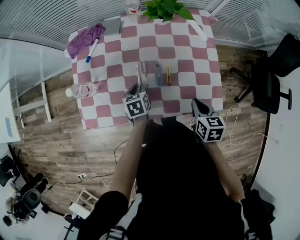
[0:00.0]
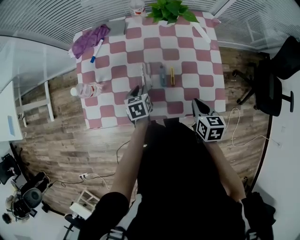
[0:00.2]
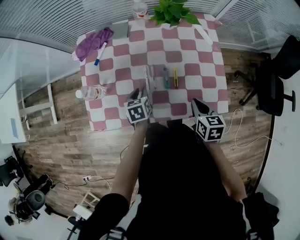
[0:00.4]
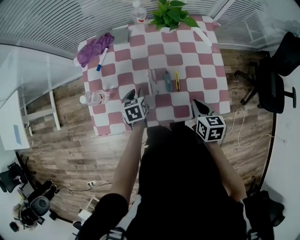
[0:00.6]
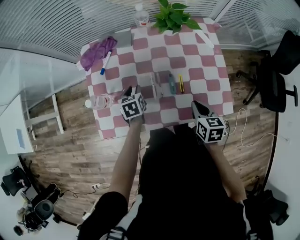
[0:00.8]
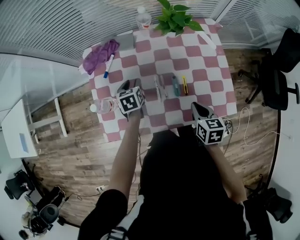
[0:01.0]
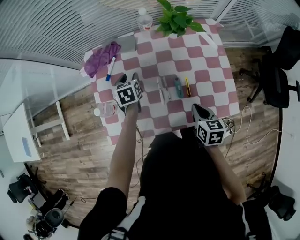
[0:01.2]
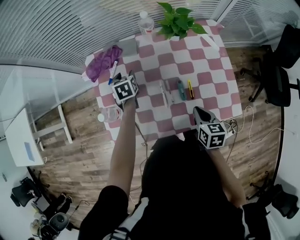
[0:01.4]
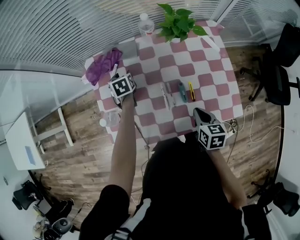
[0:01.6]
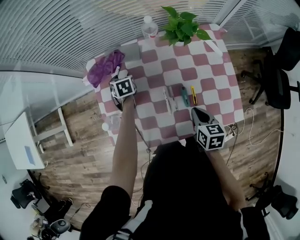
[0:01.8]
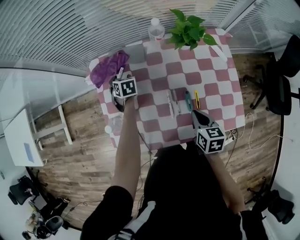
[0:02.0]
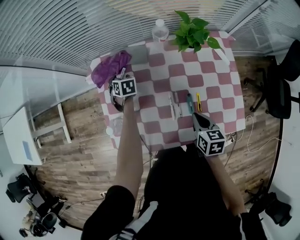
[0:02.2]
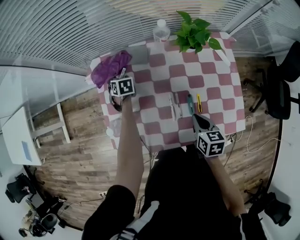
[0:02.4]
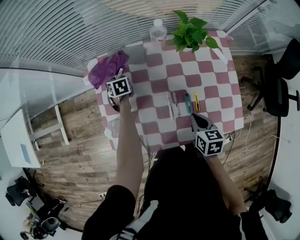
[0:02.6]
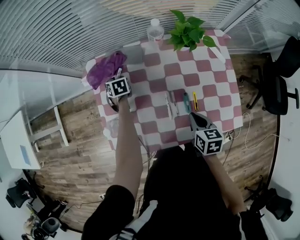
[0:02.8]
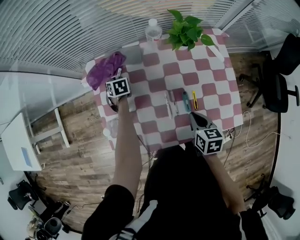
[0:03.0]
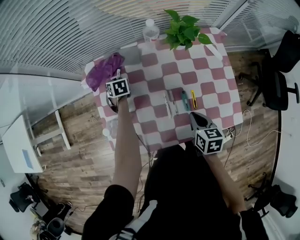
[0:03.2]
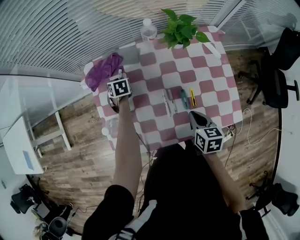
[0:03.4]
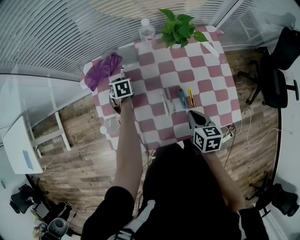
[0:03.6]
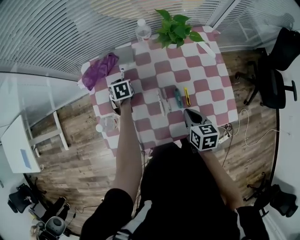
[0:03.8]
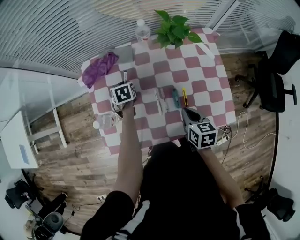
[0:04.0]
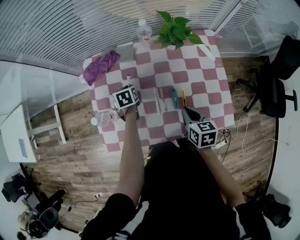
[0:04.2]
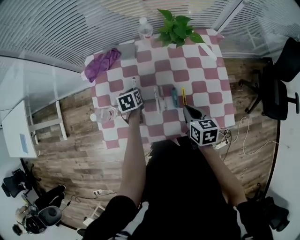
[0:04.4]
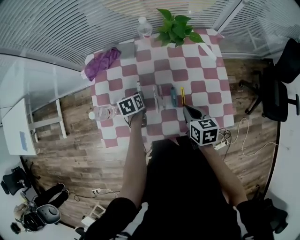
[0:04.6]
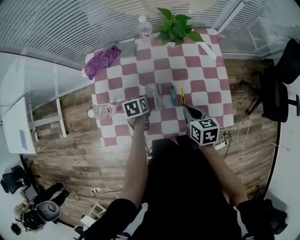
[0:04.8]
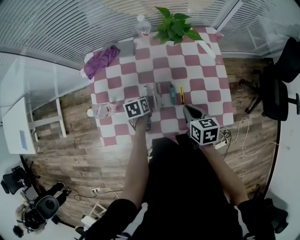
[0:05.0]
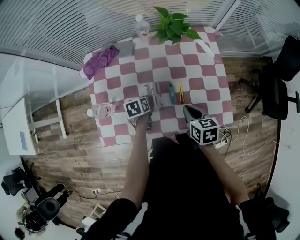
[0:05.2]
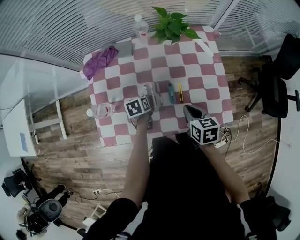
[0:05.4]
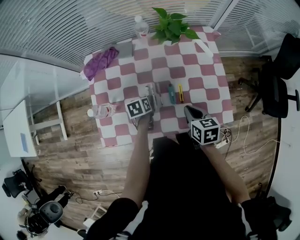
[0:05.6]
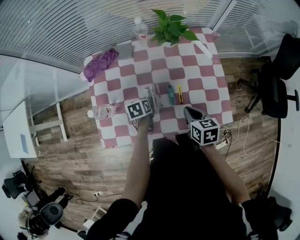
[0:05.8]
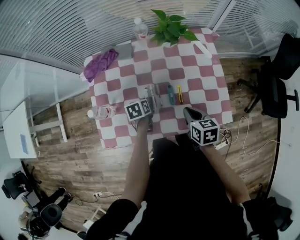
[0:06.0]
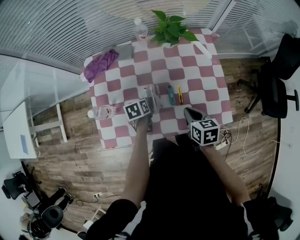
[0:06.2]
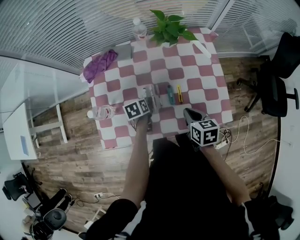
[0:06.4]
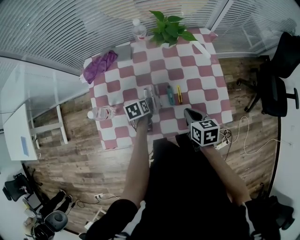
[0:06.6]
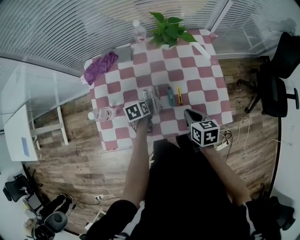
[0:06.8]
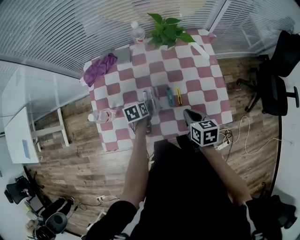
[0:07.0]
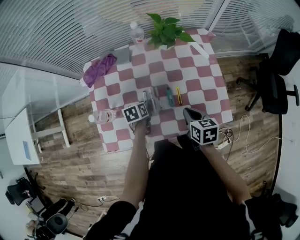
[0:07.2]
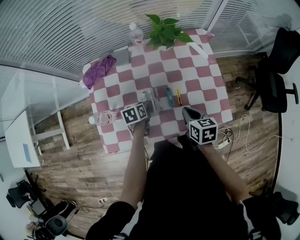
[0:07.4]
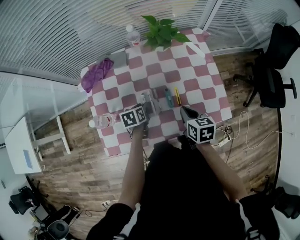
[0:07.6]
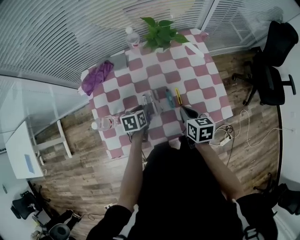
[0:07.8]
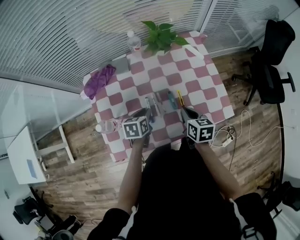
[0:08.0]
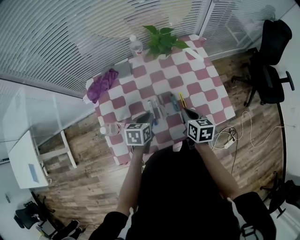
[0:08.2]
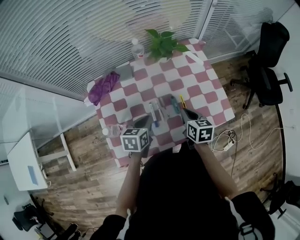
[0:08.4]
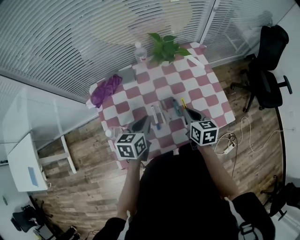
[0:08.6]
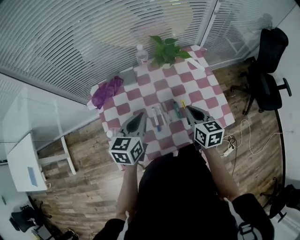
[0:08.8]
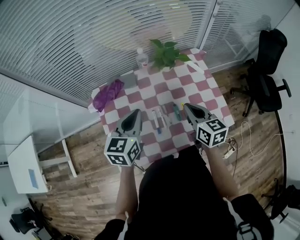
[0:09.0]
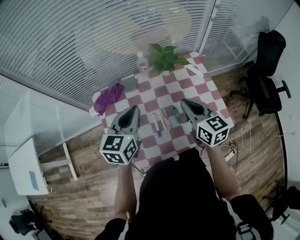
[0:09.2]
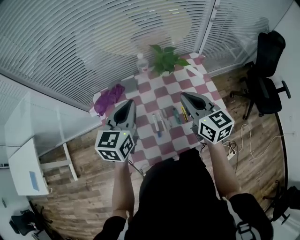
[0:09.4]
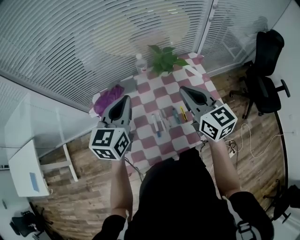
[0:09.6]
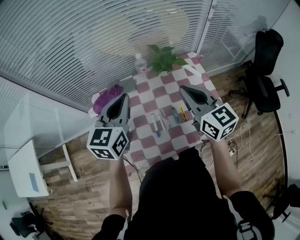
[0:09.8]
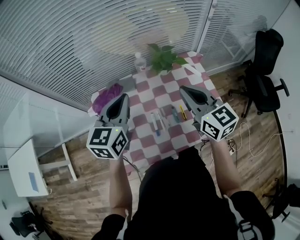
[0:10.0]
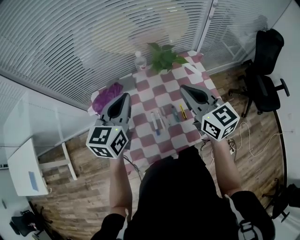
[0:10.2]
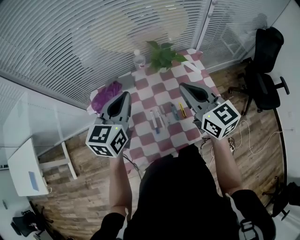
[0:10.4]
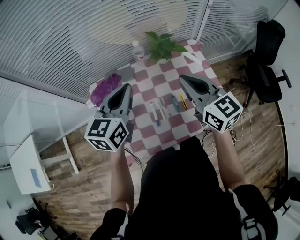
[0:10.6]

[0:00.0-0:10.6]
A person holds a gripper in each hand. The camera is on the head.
0:00.0 to 0:01.6: The right gripper heads to the left and forward, covering about 10 cm. Meanwhile the left gripper travels forward and to the left by roughly 25 cm, and opens up.
0:01.6 to 0:03.0: The left gripper heads downward, covering roughly 5 cm, and closes its fingers.
0:03.0 to 0:04.6: The left gripper travels backward and to the right by some 20 cm, and turns by some 30 degrees.
0:04.6 to 0:06.0: The left gripper ends up approximately 5 cm from where it was.
0:06.0 to 0:07.6: The grippers make only small movements.
0:07.6 to 0:09.0: The left gripper travels upward by some 30 cm, angles its fingers upward, by some 30 degrees, and closes. Meanwhile the right gripper heads upward, covering approximately 15 cm, and changes its angle by approximately 20 degrees.
0:09.0 to 0:10.6: The right gripper shifts approximately 15 cm upward, and turns by approximately 20 degrees. The left gripper heads upward, covering roughly 10 cm.

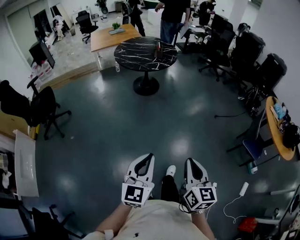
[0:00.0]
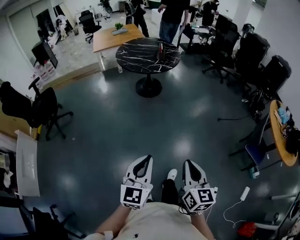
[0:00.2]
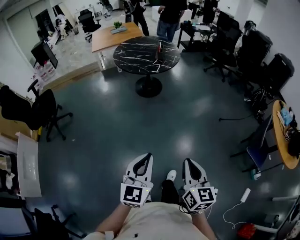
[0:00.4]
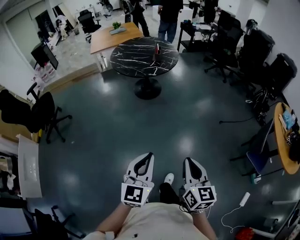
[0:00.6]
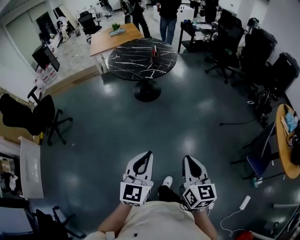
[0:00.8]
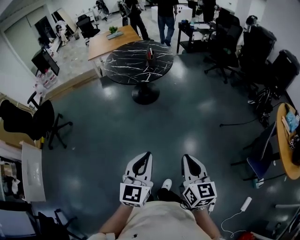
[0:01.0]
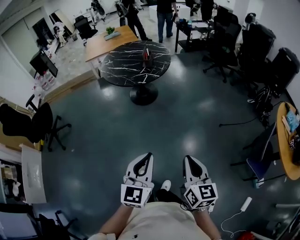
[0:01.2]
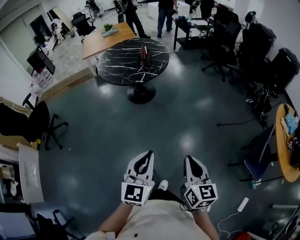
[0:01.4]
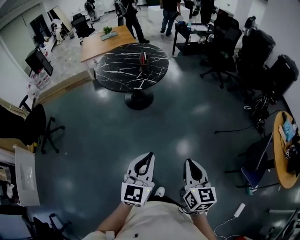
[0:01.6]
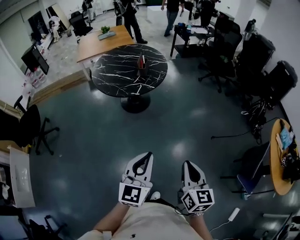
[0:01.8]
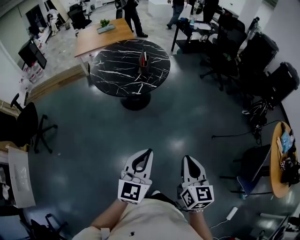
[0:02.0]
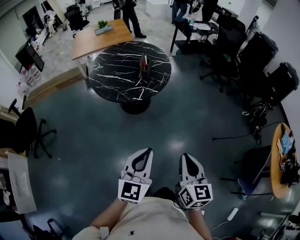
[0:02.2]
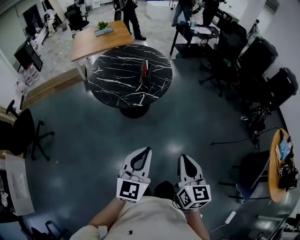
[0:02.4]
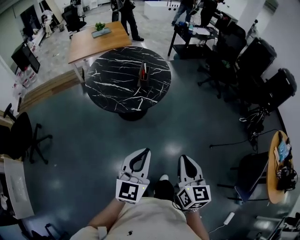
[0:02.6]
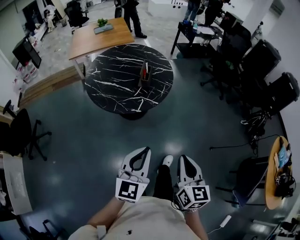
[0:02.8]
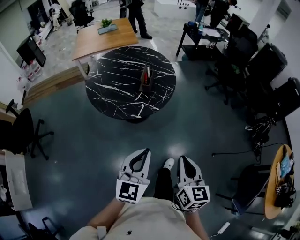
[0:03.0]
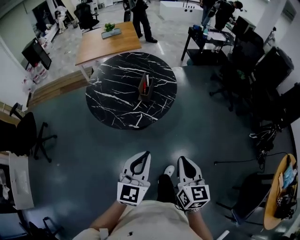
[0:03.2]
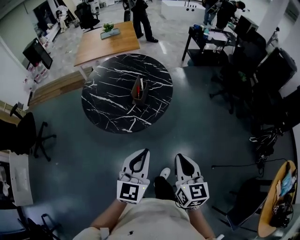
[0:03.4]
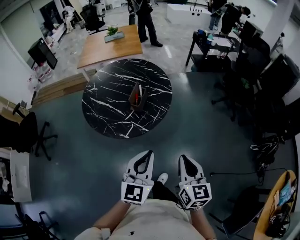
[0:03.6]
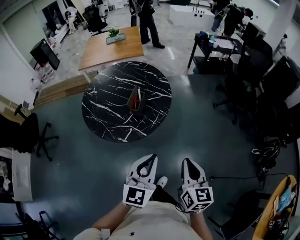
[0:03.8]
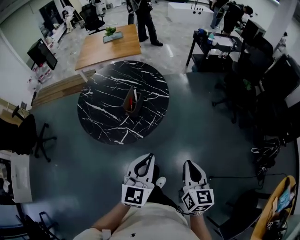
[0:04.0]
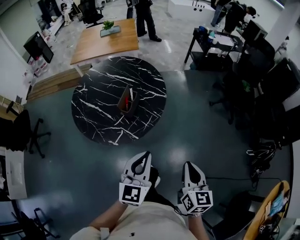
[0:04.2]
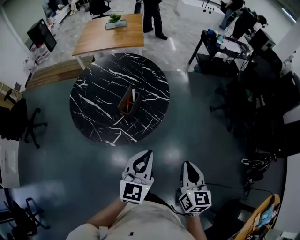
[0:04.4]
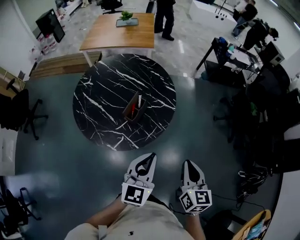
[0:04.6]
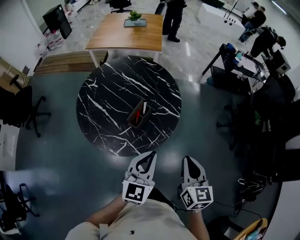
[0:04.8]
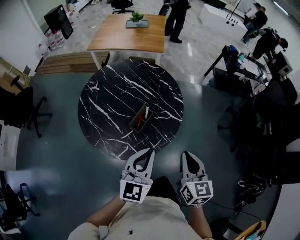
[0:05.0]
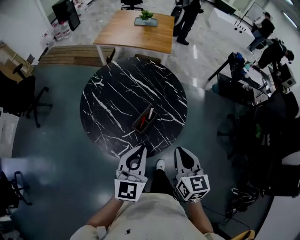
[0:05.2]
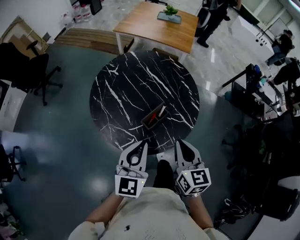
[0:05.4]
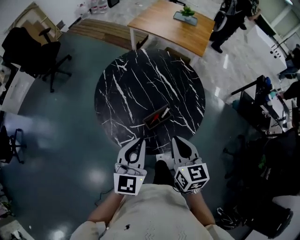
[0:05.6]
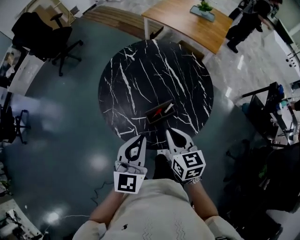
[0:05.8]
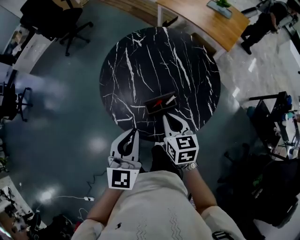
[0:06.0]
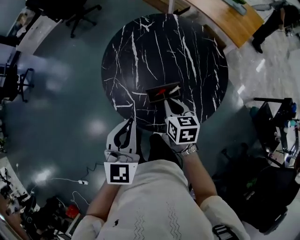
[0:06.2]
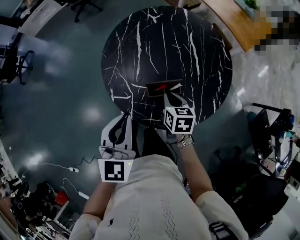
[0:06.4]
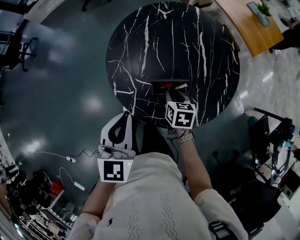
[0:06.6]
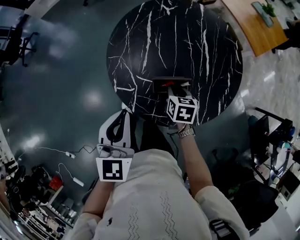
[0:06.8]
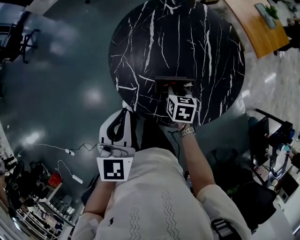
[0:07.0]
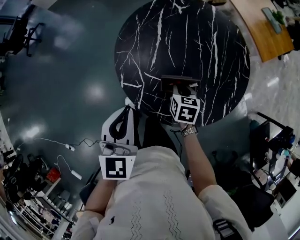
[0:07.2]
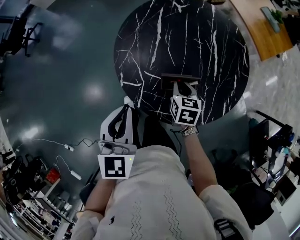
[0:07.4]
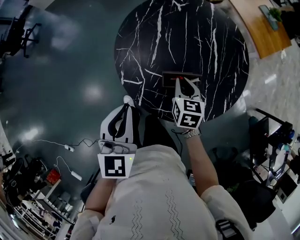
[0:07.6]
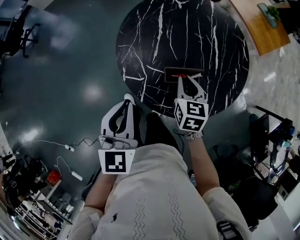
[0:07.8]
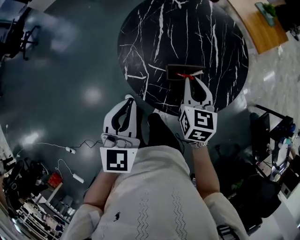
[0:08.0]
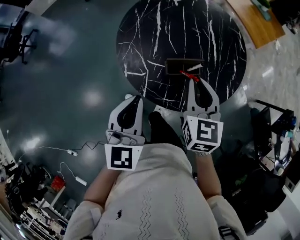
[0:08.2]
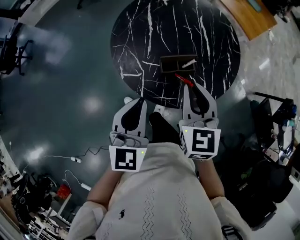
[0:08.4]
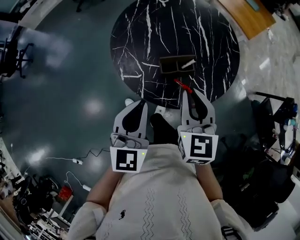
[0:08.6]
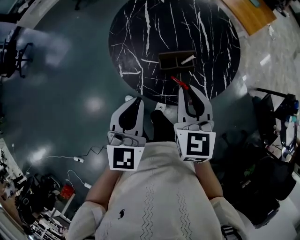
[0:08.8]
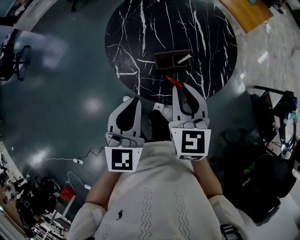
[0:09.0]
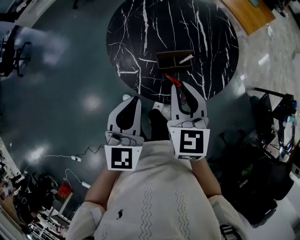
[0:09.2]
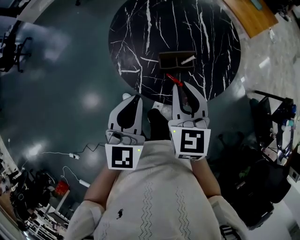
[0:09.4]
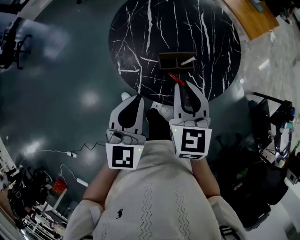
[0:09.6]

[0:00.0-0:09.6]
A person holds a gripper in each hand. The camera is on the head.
0:00.0 to 0:01.6: Both grippers move forward and to the right, roughly 40 cm.
0:01.6 to 0:03.2: Both grippers are carried forward, approximately 40 cm.
0:03.2 to 0:04.8: Both grippers travel together forward, some 35 cm.
0:04.8 to 0:06.4: The right gripper changes place by roughly 35 cm, and turns by about 60 degrees. The left gripper moves approximately 10 cm, and swivels about 70 degrees.
0:06.4 to 0:08.0: The left gripper goes roughly 5 cm to the left. Meanwhile the right gripper heads upward, covering some 10 cm, and turns by roughly 20 degrees.
0:08.0 to 0:09.6: The right gripper shifts about 10 cm backward and upward.

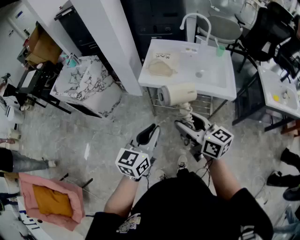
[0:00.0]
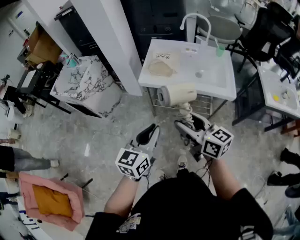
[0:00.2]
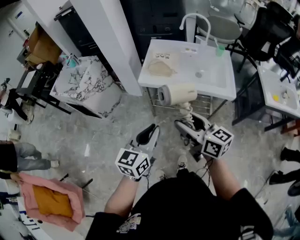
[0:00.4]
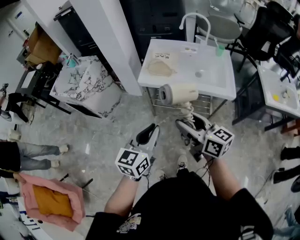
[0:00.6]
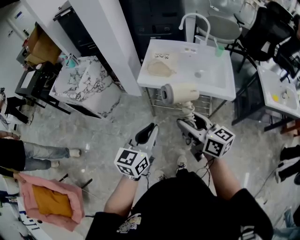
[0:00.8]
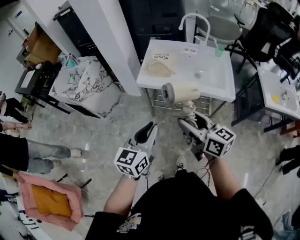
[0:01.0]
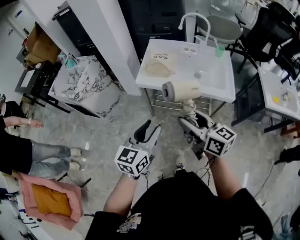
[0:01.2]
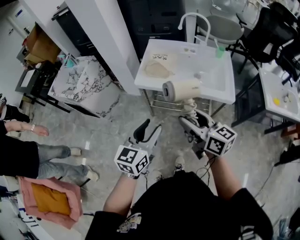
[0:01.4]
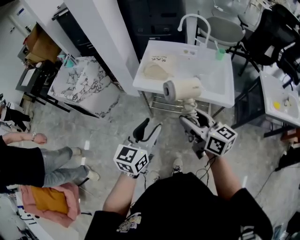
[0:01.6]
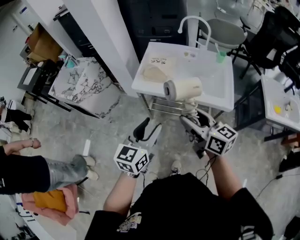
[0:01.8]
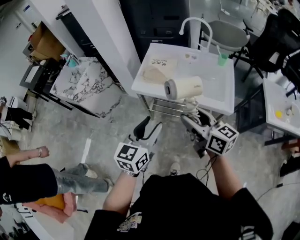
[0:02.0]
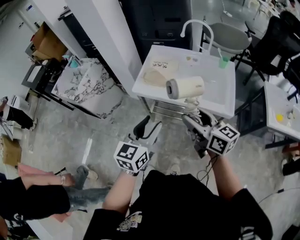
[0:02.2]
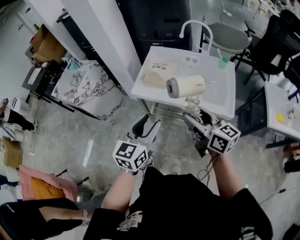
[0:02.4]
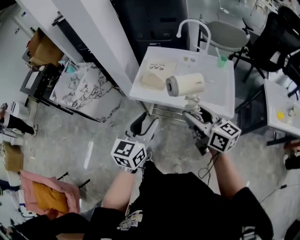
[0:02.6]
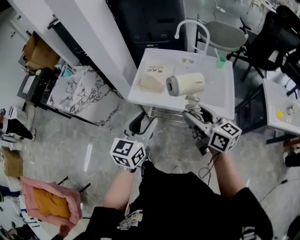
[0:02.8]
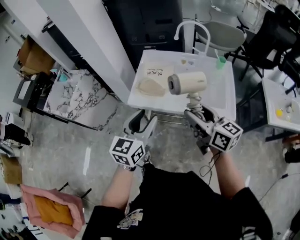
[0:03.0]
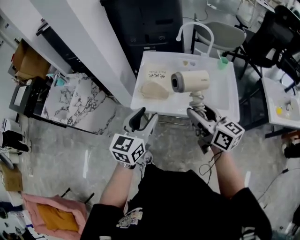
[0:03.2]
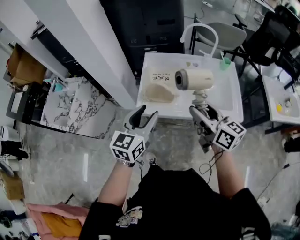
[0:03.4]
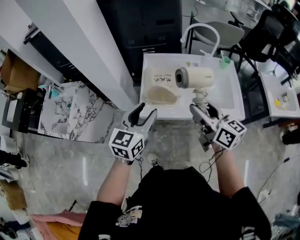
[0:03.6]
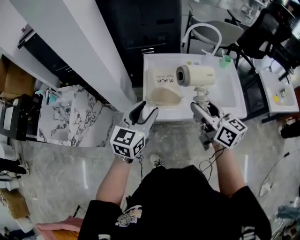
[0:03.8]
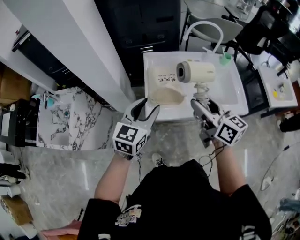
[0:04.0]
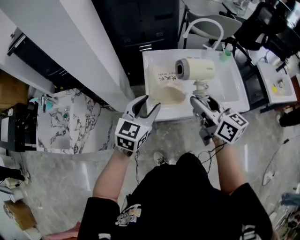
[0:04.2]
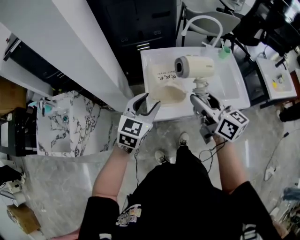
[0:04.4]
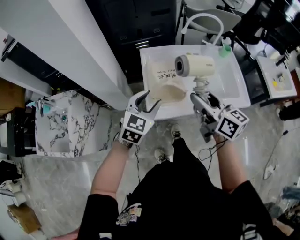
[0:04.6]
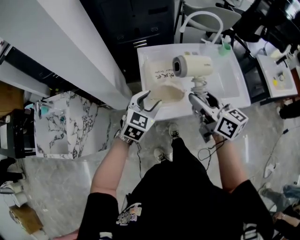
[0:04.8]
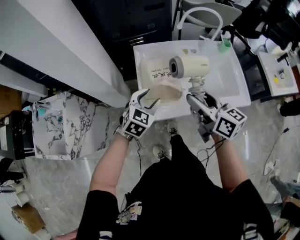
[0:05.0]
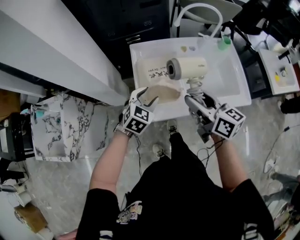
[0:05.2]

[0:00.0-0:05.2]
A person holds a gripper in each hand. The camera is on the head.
0:00.0 to 0:01.8: Both grippers move to the right and forward, about 10 cm. The left gripper opens.
0:01.8 to 0:03.4: Both grippers travel together forward, about 20 cm.
0:03.4 to 0:05.2: The left gripper travels forward and downward by about 25 cm, and swivels approximately 40 degrees. The right gripper moves forward, to the left and downward, roughly 15 cm.
